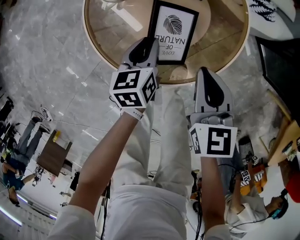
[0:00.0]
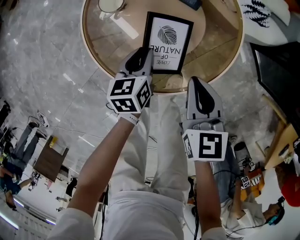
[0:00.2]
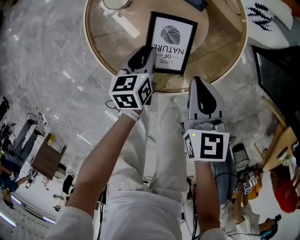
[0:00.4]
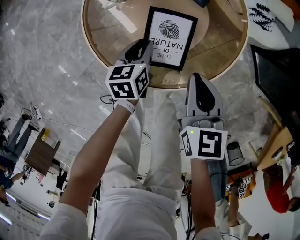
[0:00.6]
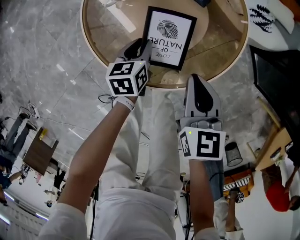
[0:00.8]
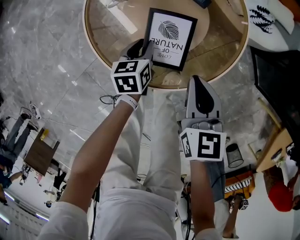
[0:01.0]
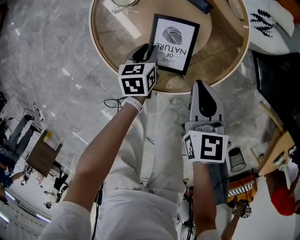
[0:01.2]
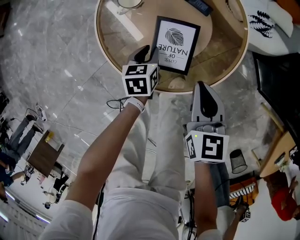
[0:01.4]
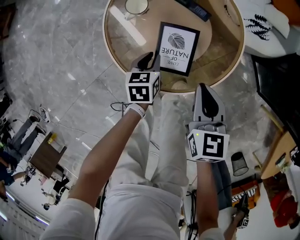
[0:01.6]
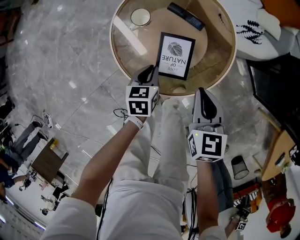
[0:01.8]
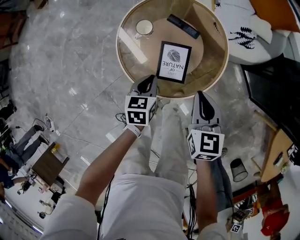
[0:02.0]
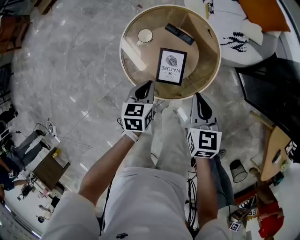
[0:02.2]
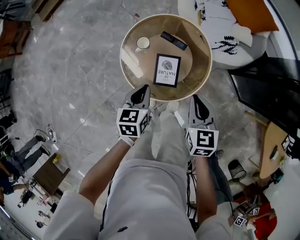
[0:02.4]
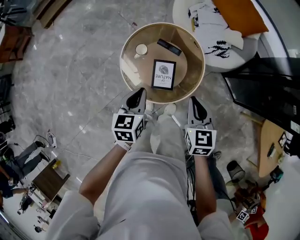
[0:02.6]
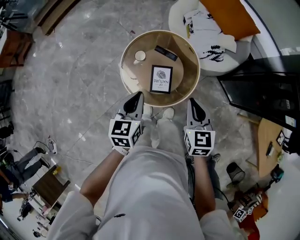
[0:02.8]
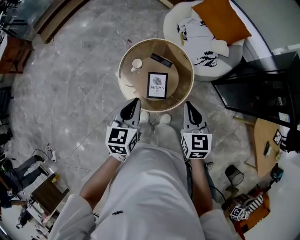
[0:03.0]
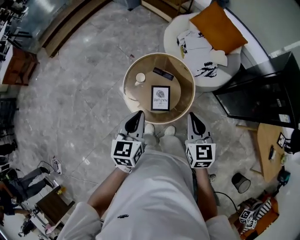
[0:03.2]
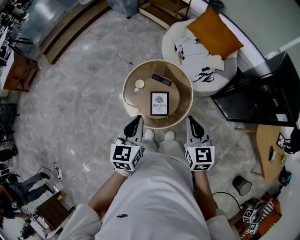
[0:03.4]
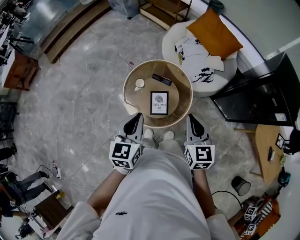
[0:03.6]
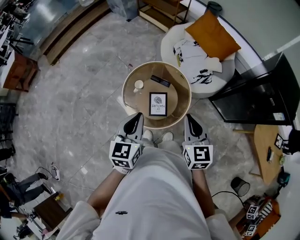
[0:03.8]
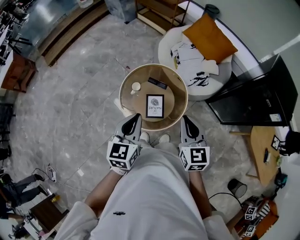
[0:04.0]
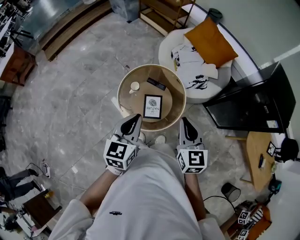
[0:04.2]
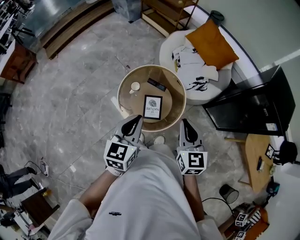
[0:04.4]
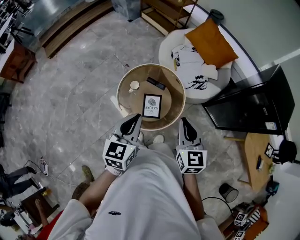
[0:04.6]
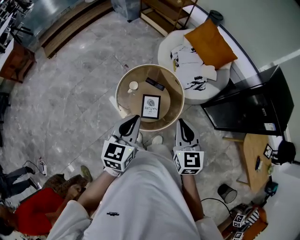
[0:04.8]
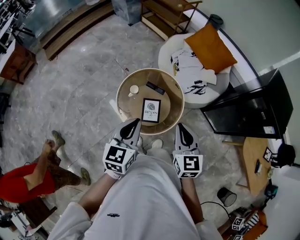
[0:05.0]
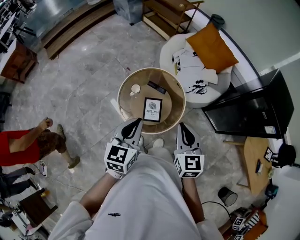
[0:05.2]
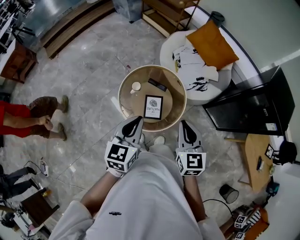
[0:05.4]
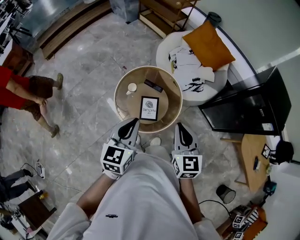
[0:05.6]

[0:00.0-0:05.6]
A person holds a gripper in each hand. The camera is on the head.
0:00.0 to 0:01.4: The left gripper heads downward, covering about 5 cm.
0:01.4 to 0:02.8: The left gripper moves upward, some 50 cm, rotates some 30 degrees, and closes up. Meanwhile the right gripper moves upward, some 30 cm.
0:02.8 to 0:04.2: Both grippers travel together upward, roughly 10 cm.
0:04.2 to 0:05.6: The grippers make only small movements.

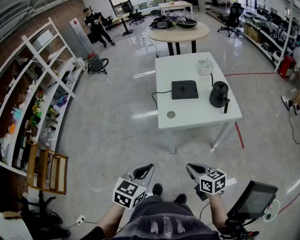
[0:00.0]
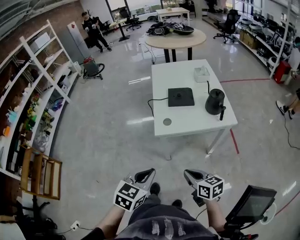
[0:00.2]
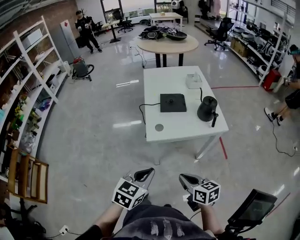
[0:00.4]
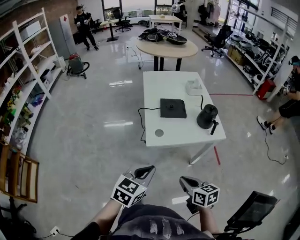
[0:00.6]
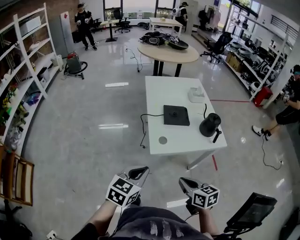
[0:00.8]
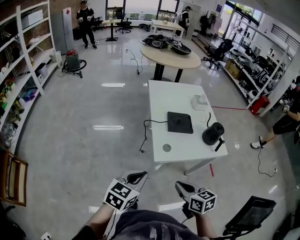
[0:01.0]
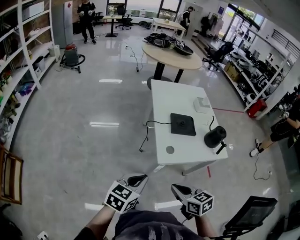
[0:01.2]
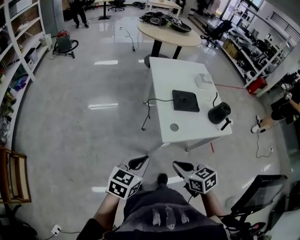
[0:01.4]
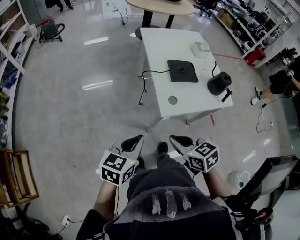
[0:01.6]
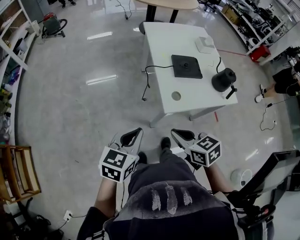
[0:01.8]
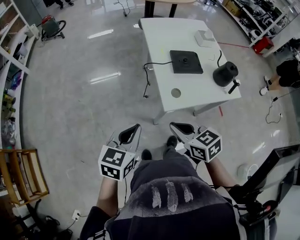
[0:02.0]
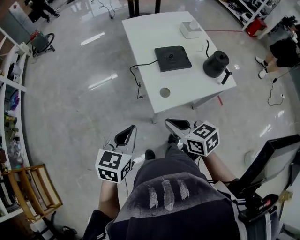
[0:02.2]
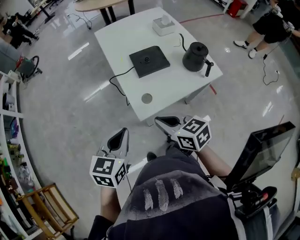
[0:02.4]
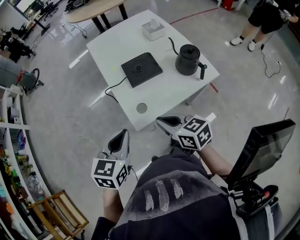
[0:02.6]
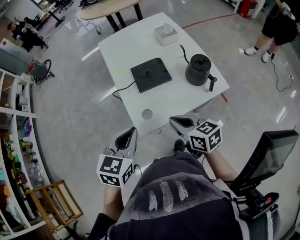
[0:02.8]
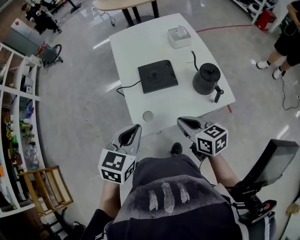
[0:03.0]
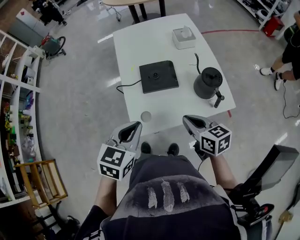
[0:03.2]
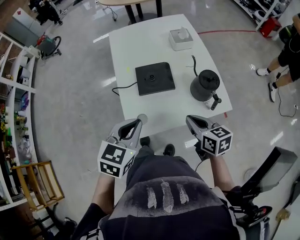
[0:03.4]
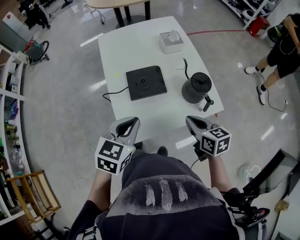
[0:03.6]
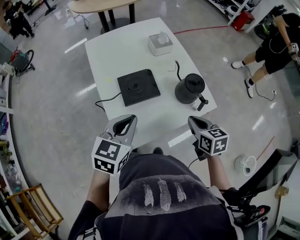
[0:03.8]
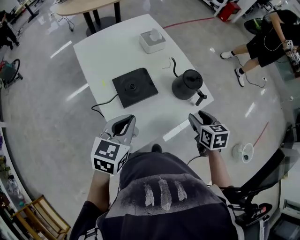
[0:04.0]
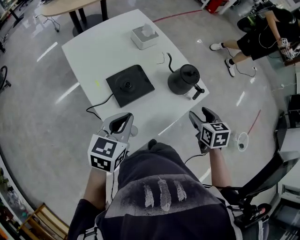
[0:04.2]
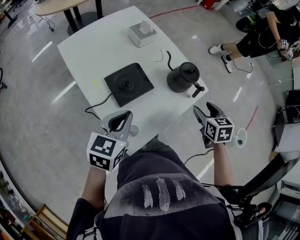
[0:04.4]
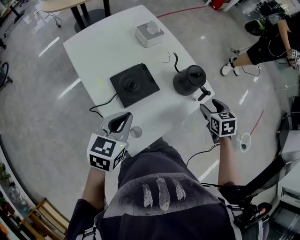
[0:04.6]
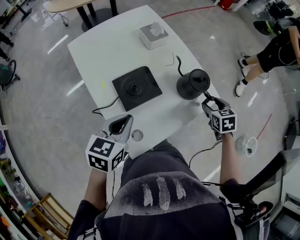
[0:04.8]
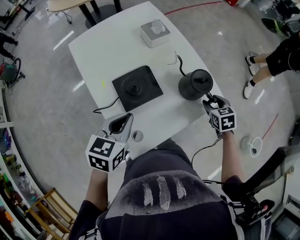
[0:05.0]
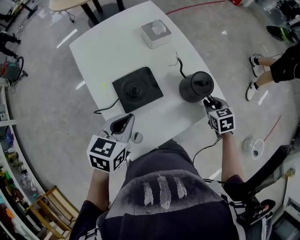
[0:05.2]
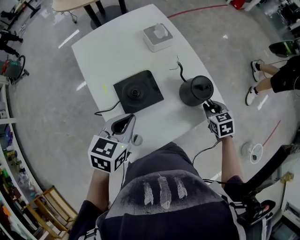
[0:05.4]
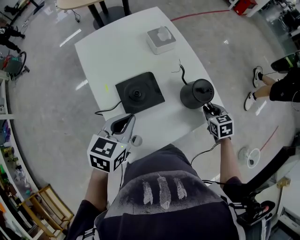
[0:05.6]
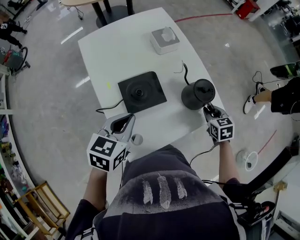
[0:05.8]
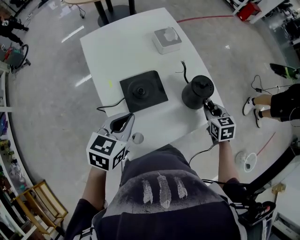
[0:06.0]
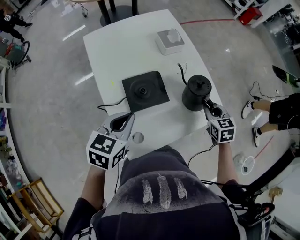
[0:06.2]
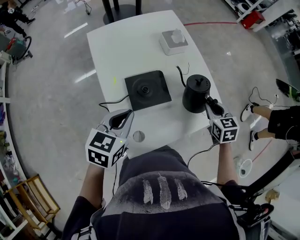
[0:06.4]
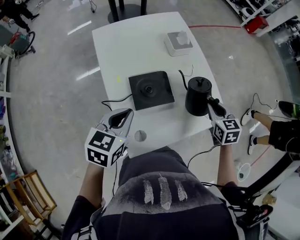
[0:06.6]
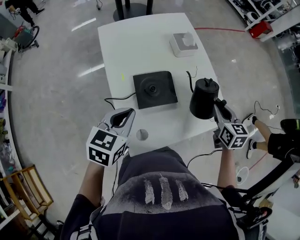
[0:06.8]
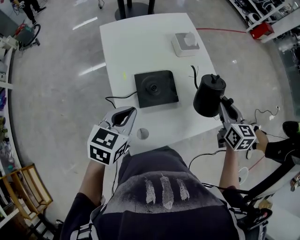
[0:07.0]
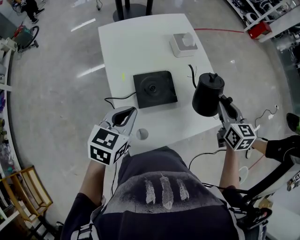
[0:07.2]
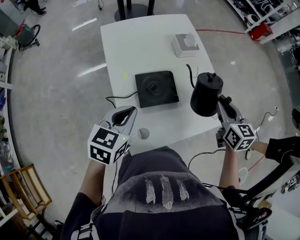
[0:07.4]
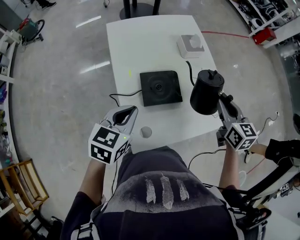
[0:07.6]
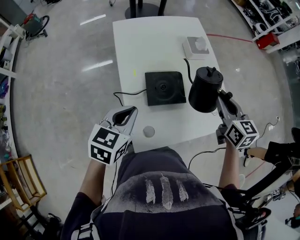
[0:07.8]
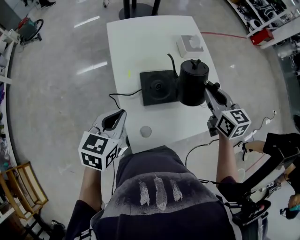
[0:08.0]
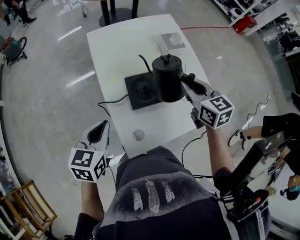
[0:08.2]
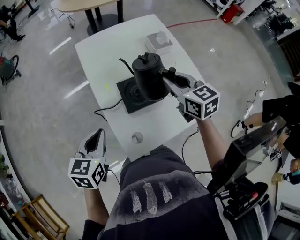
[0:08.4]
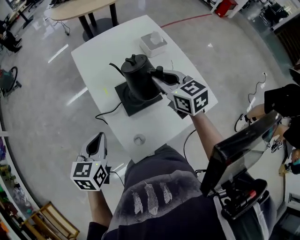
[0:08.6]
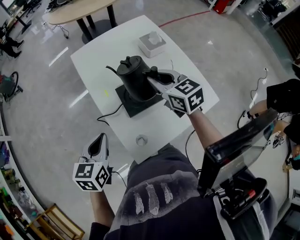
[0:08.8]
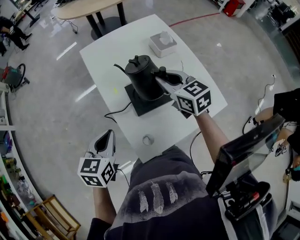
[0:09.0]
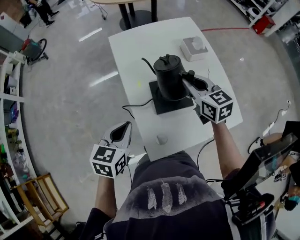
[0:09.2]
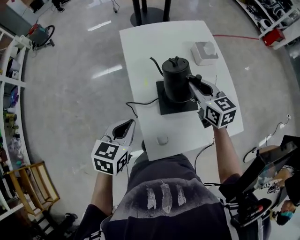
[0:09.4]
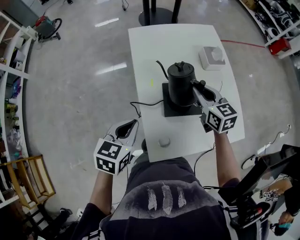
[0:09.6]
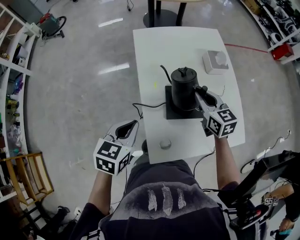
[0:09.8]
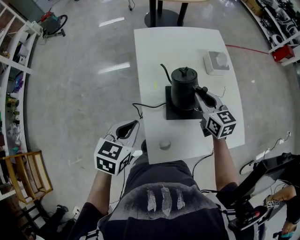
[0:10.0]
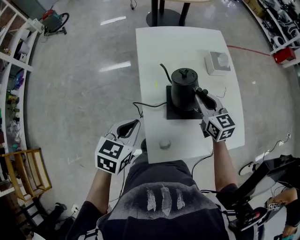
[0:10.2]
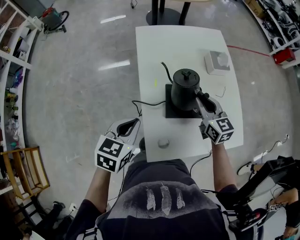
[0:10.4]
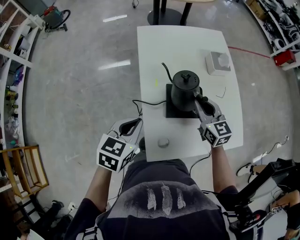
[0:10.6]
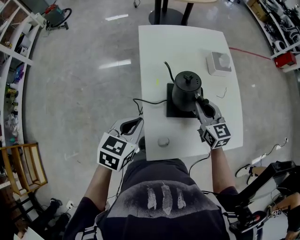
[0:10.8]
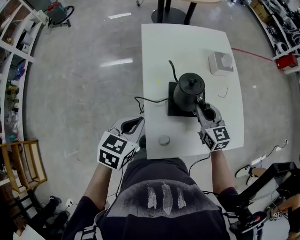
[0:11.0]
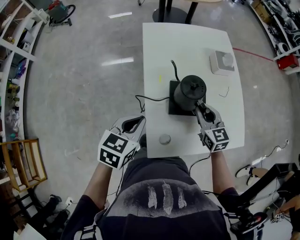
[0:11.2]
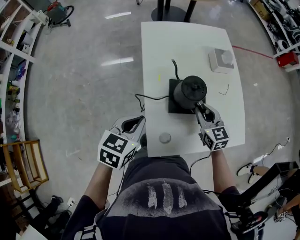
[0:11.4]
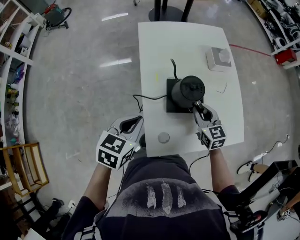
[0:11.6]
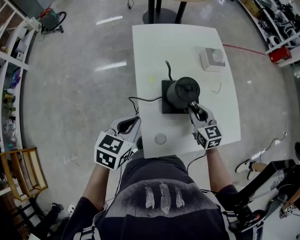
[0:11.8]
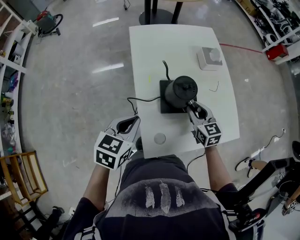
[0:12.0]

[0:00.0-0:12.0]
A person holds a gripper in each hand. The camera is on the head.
0:00.0 to 0:01.6: The two grippers go some 25 cm to the left and forward. The left gripper changes its angle by about 20 degrees.
0:01.6 to 0:03.0: The two grippers go about 25 cm to the right and forward. The right gripper rotates roughly 20 degrees.
0:03.0 to 0:04.4: The right gripper changes place by some 15 cm, rotates roughly 50 degrees, and opens up, while the left gripper moves about 15 cm, and swivels about 30 degrees.
0:04.4 to 0:06.0: The right gripper heads forward and downward, covering roughly 10 cm, and closes up.
0:06.0 to 0:07.6: The right gripper travels upward and to the left by about 20 cm, and changes its angle by approximately 20 degrees, while the left gripper shifts some 5 cm to the left.
0:07.6 to 0:09.0: The right gripper heads to the left and forward, covering about 20 cm. Meanwhile the left gripper travels to the left by approximately 5 cm.
0:09.0 to 0:10.4: The right gripper is displaced downward by some 5 cm.
0:10.4 to 0:12.0: The right gripper is displaced downward and backward by roughly 10 cm.

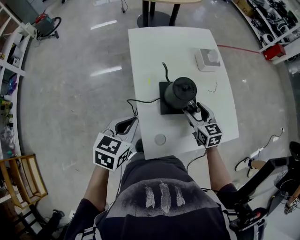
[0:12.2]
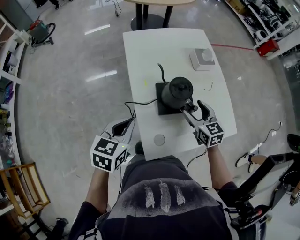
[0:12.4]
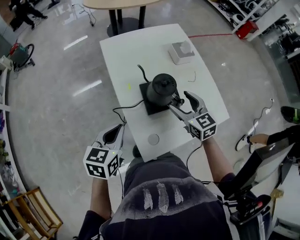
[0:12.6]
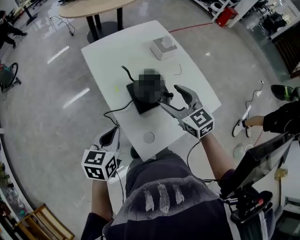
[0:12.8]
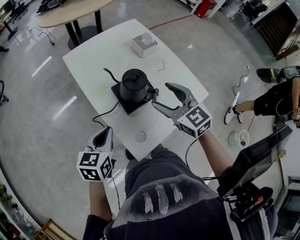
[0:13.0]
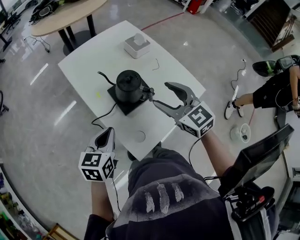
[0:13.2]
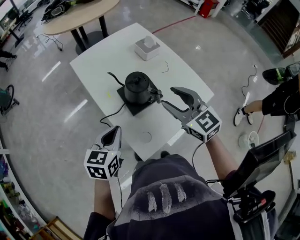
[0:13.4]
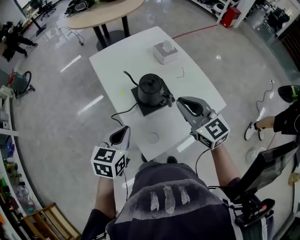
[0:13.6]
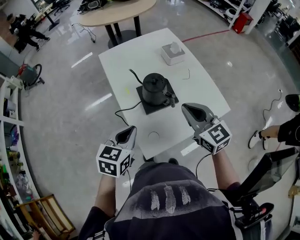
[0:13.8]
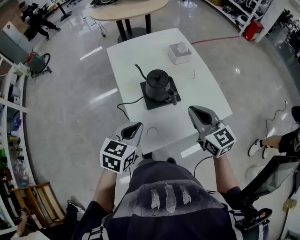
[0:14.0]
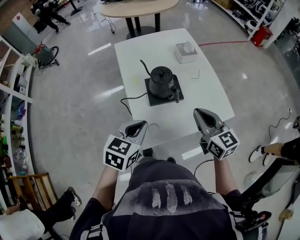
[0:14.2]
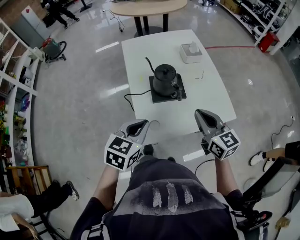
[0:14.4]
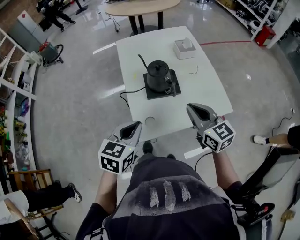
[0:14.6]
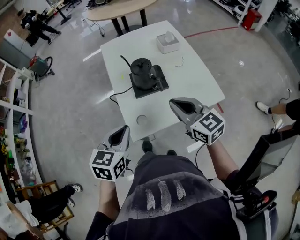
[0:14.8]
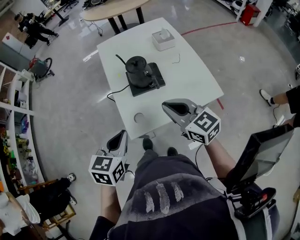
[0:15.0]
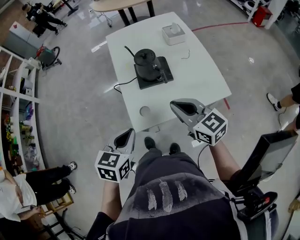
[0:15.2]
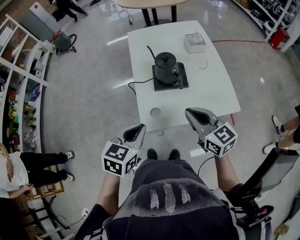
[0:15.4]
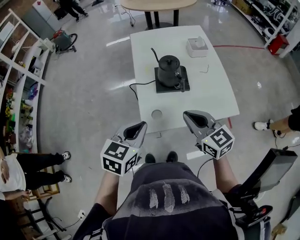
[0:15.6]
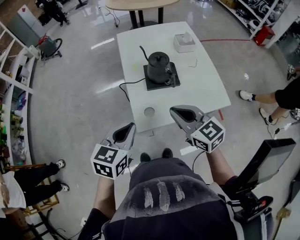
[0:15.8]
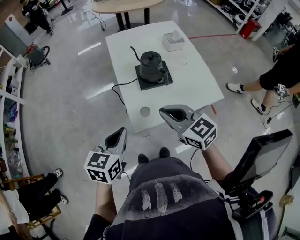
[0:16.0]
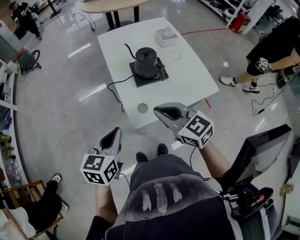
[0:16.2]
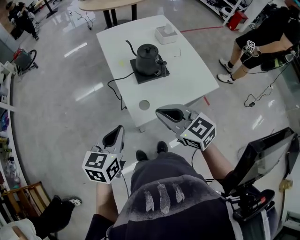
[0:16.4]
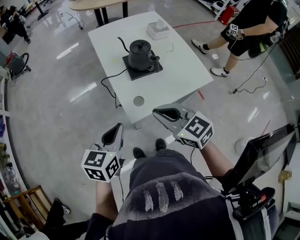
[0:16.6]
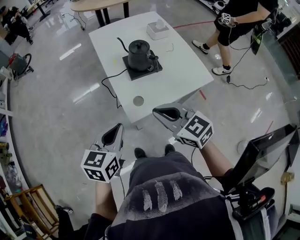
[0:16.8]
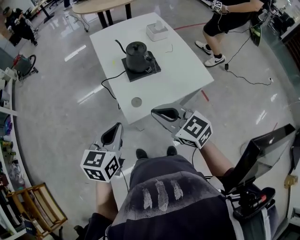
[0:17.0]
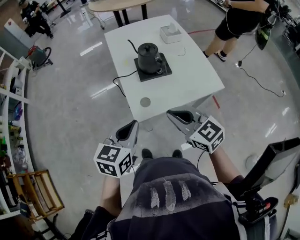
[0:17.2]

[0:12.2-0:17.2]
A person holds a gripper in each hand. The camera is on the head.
0:12.2 to 0:13.8: The right gripper heads upward and backward, covering about 20 cm, and closes; the left gripper moves to the right, some 5 cm.
0:13.8 to 0:15.6: The two grippers go approximately 10 cm backward. The right gripper swivels approximately 20 degrees.
0:15.6 to 0:17.2: The left gripper is displaced backward by some 5 cm, and goes to the left and returns, some 10 cm each way. Meanwhile the right gripper travels backward by some 10 cm, and goes to the left and returns, approximately 10 cm each way.

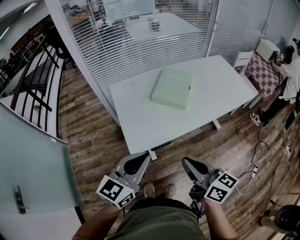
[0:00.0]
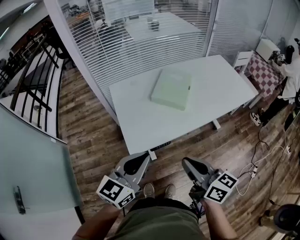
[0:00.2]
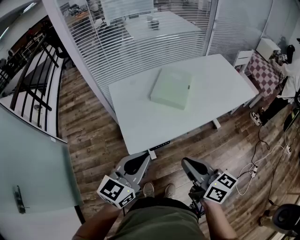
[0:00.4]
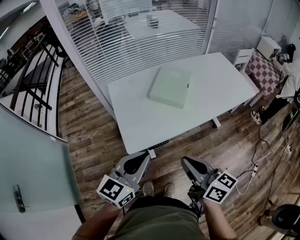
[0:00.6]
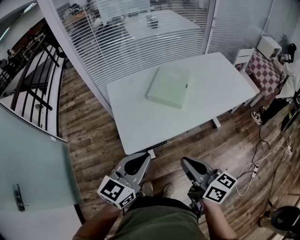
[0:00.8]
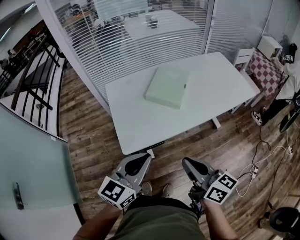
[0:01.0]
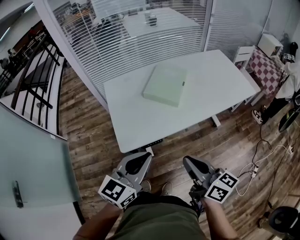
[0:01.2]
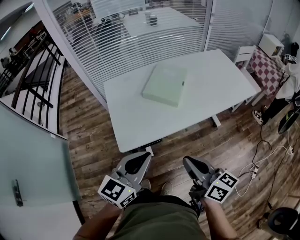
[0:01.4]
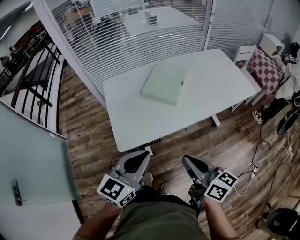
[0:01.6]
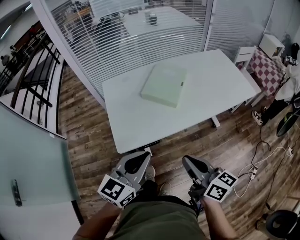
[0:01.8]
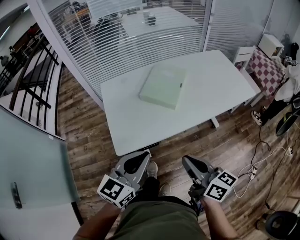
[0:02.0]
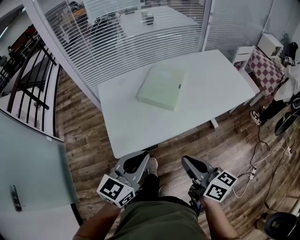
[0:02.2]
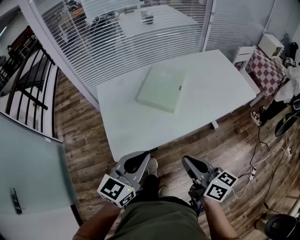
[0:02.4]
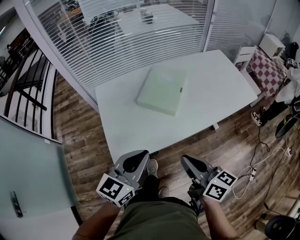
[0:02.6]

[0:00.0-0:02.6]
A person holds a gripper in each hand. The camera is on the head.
0:00.0 to 0:01.2: The grippers both shift to the right by some 5 cm.
0:01.2 to 0:02.6: The grippers both shift forward by about 10 cm.
